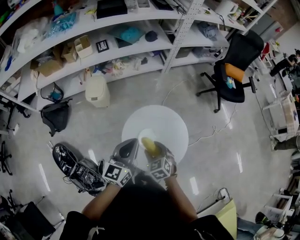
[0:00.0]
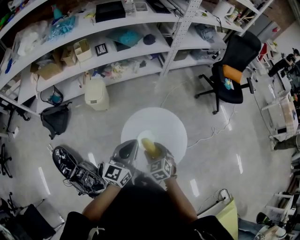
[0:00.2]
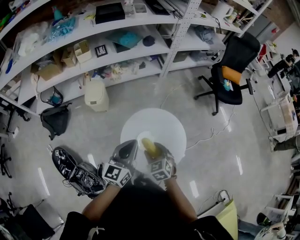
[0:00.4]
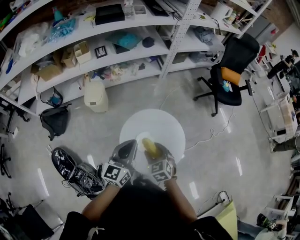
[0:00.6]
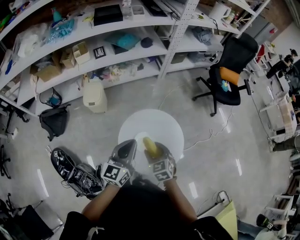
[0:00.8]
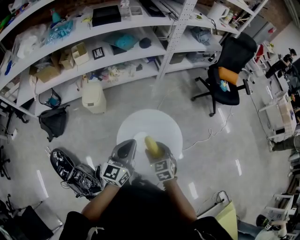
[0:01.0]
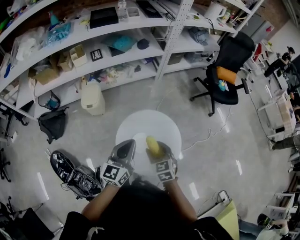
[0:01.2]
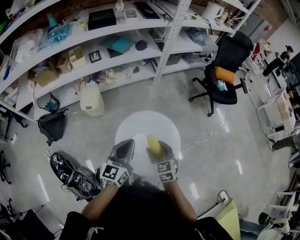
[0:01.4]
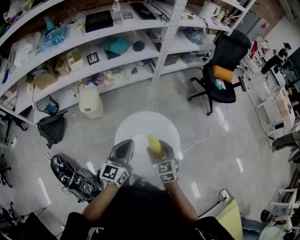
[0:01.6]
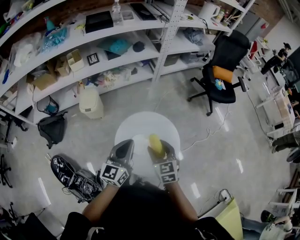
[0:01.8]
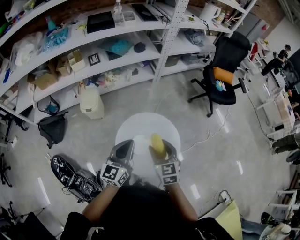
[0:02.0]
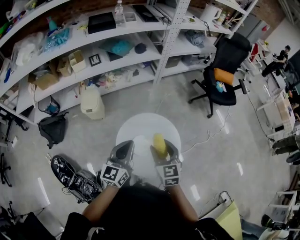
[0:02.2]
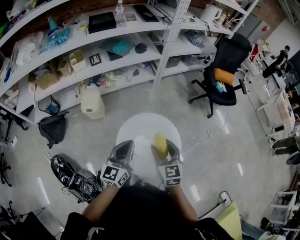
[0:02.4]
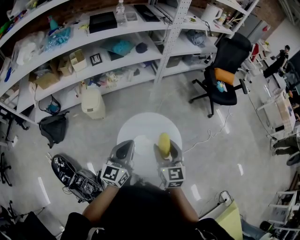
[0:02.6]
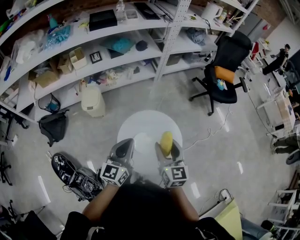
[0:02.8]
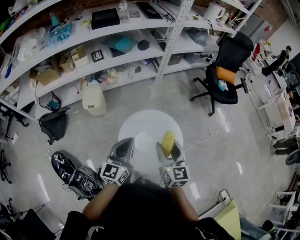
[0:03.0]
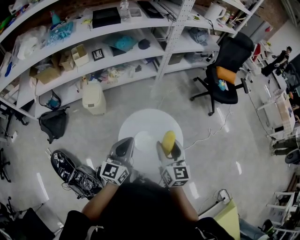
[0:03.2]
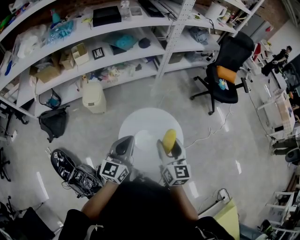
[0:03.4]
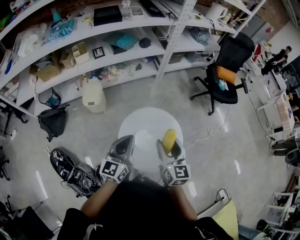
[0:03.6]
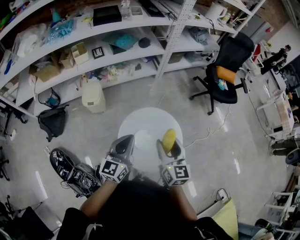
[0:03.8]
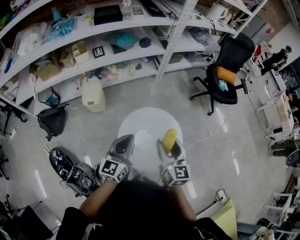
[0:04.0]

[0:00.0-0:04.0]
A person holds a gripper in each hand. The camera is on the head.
0:00.0 to 0:01.4: The right gripper is displaced upward and to the right by roughly 10 cm.
0:01.4 to 0:02.6: The right gripper shifts approximately 10 cm upward, and turns by some 20 degrees.
0:02.6 to 0:04.0: The grippers make only small movements.

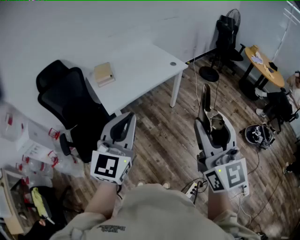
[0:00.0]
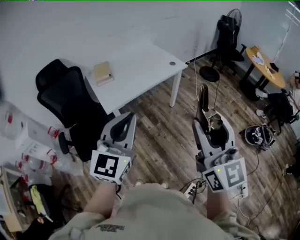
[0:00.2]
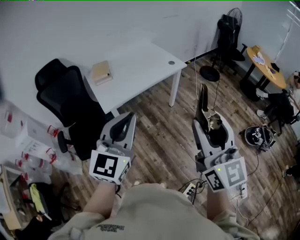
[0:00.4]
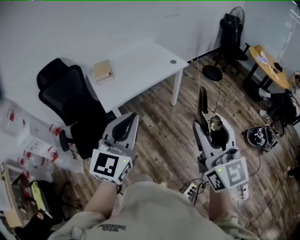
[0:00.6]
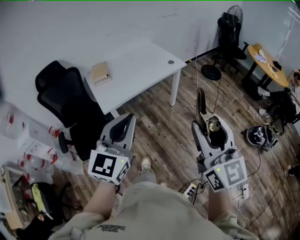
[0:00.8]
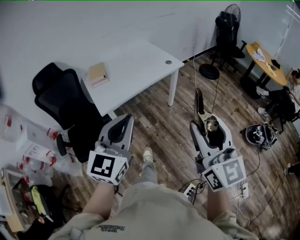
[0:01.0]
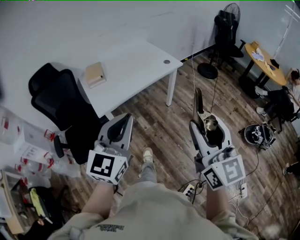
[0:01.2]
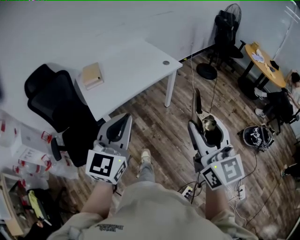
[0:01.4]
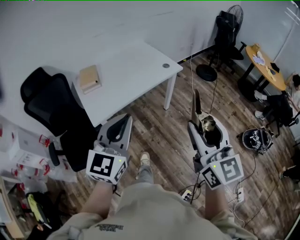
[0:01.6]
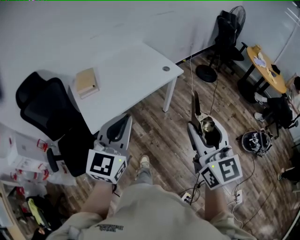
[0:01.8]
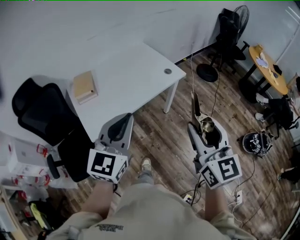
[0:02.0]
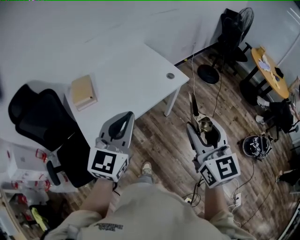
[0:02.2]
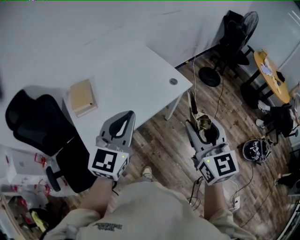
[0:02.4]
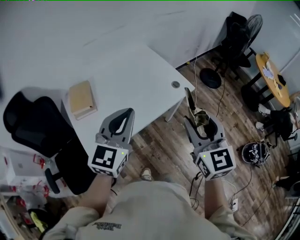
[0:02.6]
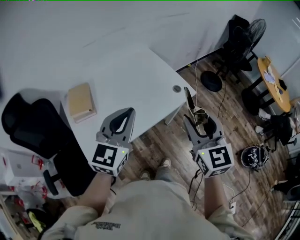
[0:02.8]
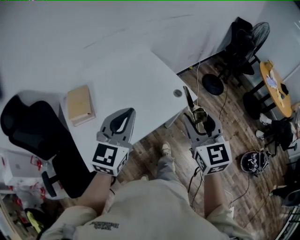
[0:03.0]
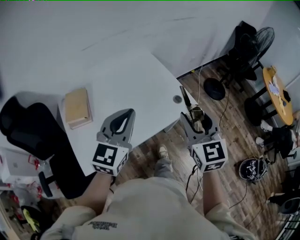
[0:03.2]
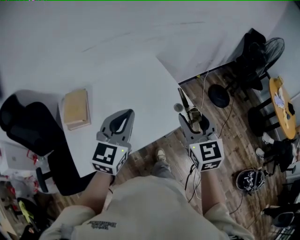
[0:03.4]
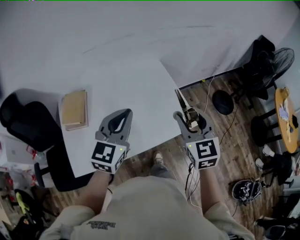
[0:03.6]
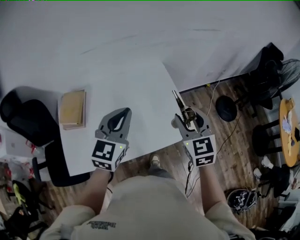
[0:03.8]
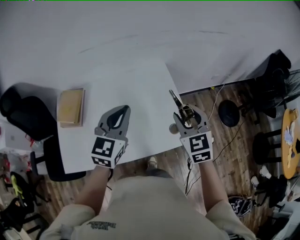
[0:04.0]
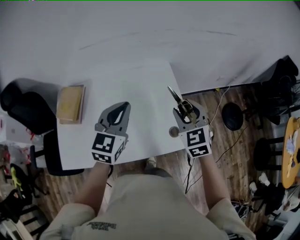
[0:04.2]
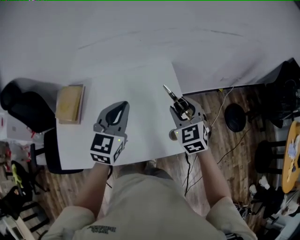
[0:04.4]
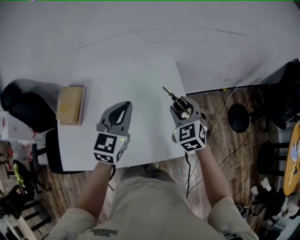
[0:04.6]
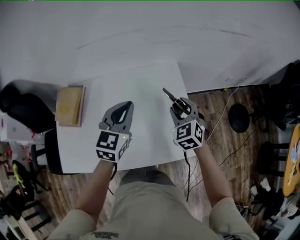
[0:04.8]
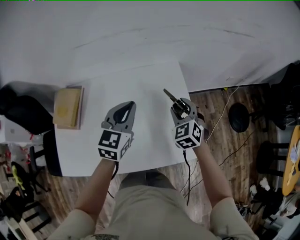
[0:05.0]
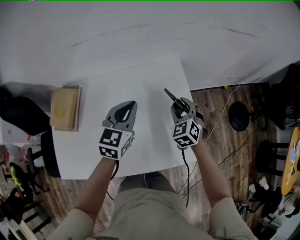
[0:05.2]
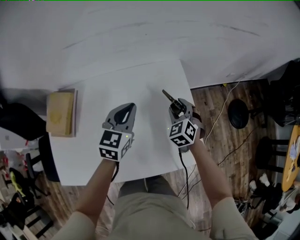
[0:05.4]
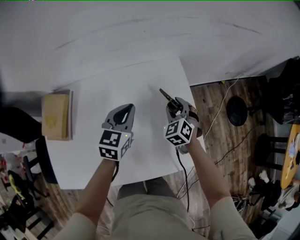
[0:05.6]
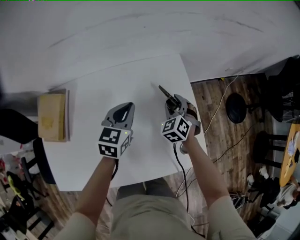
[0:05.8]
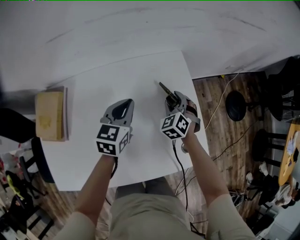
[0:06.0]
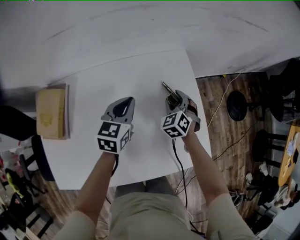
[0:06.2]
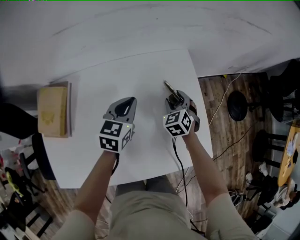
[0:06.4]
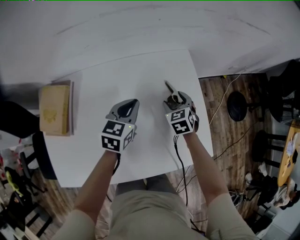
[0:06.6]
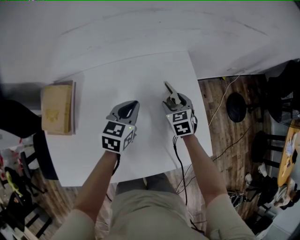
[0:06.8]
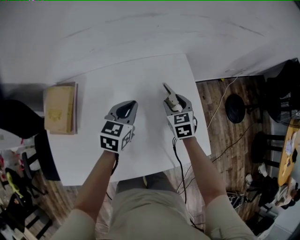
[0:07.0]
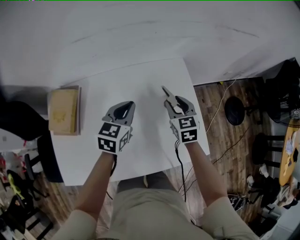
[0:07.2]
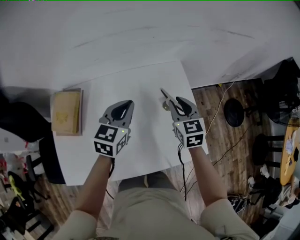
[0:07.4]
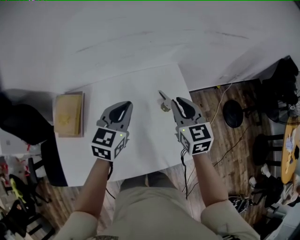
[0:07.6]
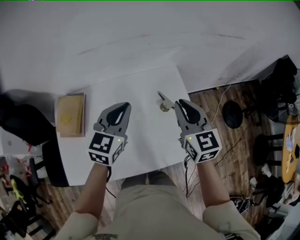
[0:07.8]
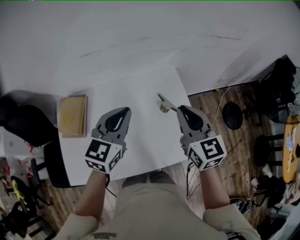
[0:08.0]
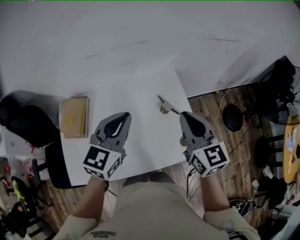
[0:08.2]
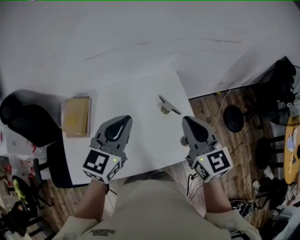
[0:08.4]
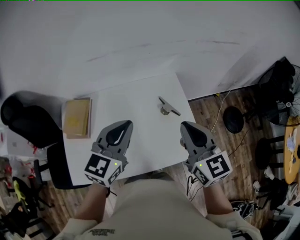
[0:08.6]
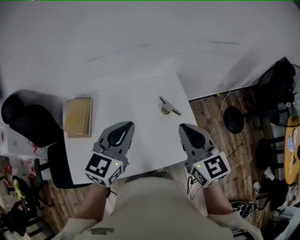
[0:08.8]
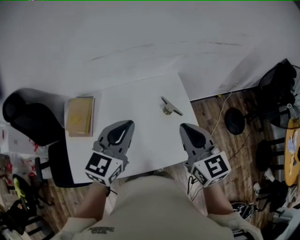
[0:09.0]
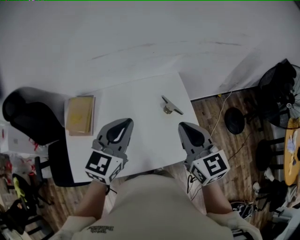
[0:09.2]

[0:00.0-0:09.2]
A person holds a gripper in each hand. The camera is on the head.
0:00.0 to 0:01.6: The two grippers go approximately 15 cm forward and to the right.
0:01.6 to 0:03.0: Both grippers travel together forward, approximately 40 cm.
0:03.0 to 0:04.6: The right gripper shifts by approximately 40 cm, and changes its angle by approximately 40 degrees; the left gripper shifts by some 30 cm, and rotates about 30 degrees.
0:04.6 to 0:06.2: Both grippers travel together downward and forward, about 25 cm. The left gripper changes its angle by some 20 degrees; the right gripper changes its angle by some 20 degrees.
0:06.2 to 0:07.6: The right gripper travels upward by approximately 25 cm, turns by about 40 degrees, and closes up. Meanwhile the left gripper heads upward and backward, covering approximately 15 cm.
0:07.6 to 0:09.2: Both grippers move backward and upward, approximately 15 cm.

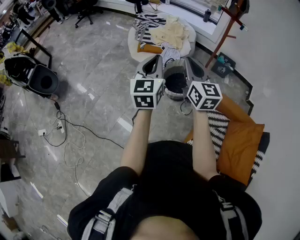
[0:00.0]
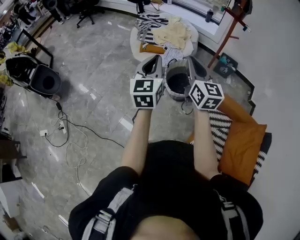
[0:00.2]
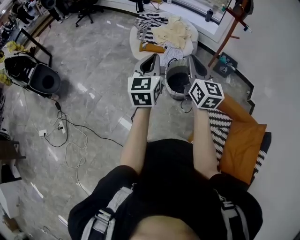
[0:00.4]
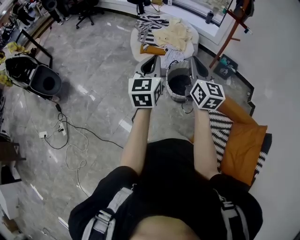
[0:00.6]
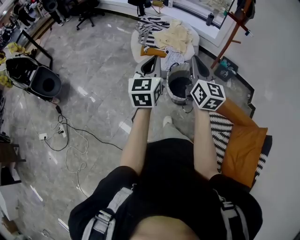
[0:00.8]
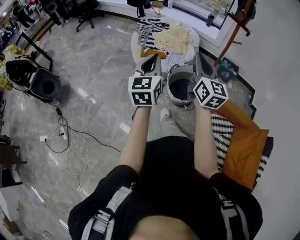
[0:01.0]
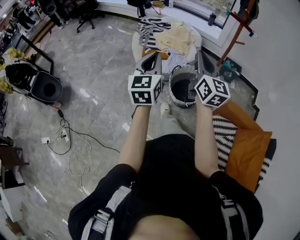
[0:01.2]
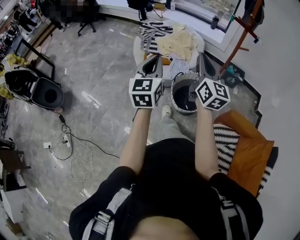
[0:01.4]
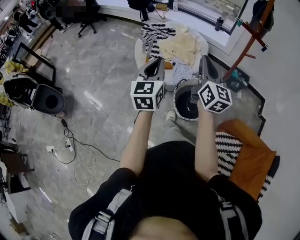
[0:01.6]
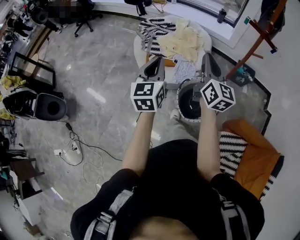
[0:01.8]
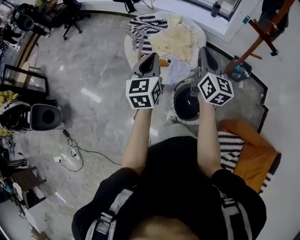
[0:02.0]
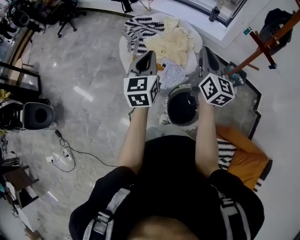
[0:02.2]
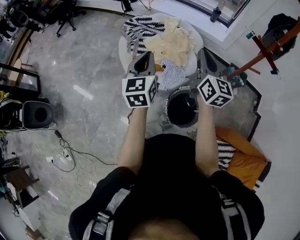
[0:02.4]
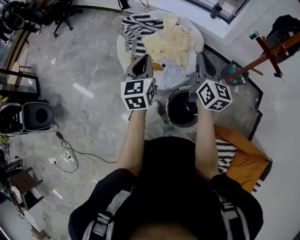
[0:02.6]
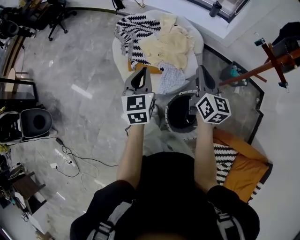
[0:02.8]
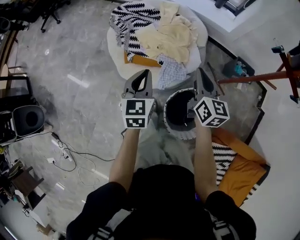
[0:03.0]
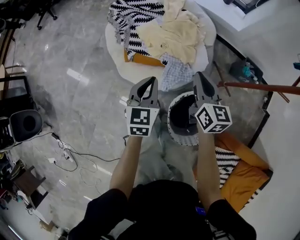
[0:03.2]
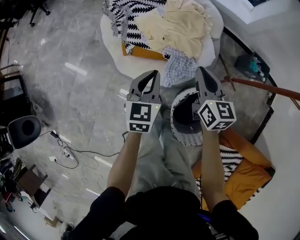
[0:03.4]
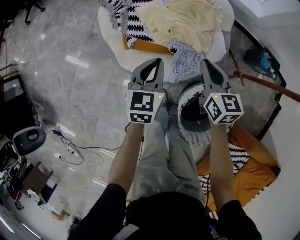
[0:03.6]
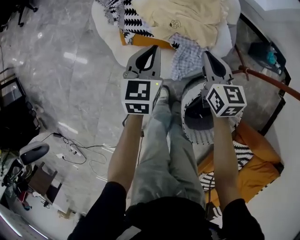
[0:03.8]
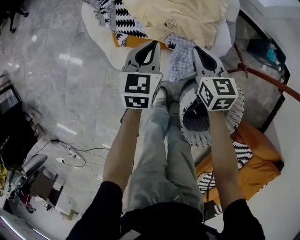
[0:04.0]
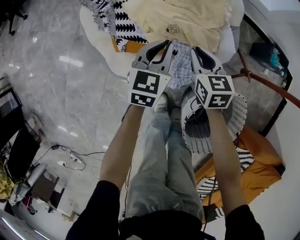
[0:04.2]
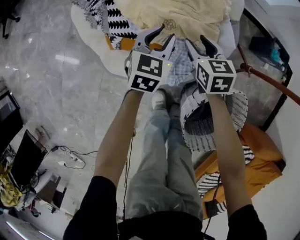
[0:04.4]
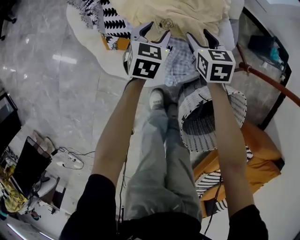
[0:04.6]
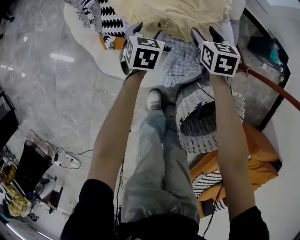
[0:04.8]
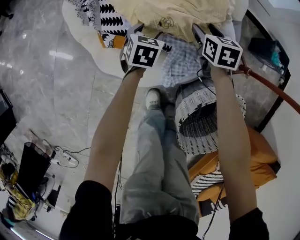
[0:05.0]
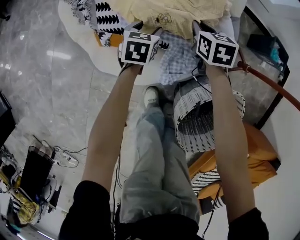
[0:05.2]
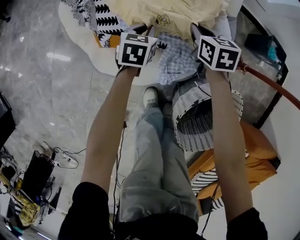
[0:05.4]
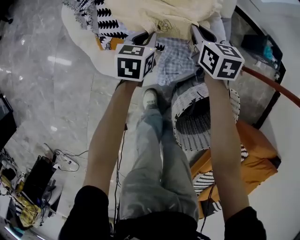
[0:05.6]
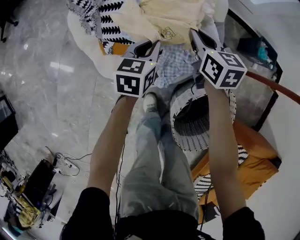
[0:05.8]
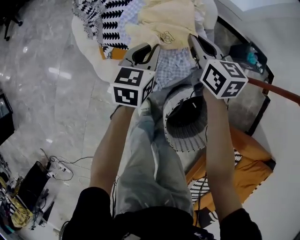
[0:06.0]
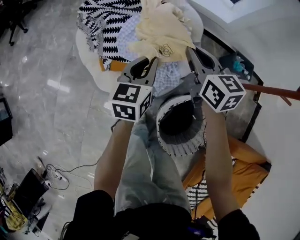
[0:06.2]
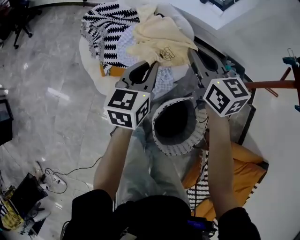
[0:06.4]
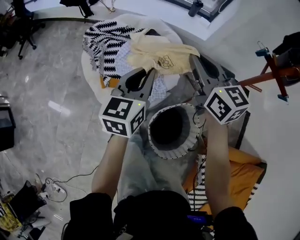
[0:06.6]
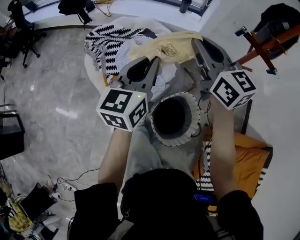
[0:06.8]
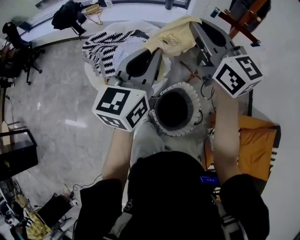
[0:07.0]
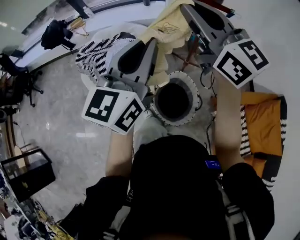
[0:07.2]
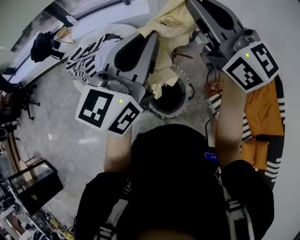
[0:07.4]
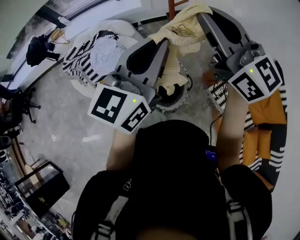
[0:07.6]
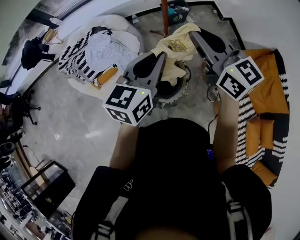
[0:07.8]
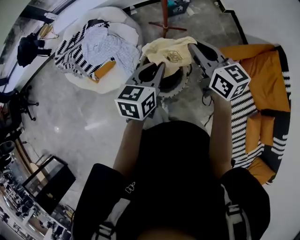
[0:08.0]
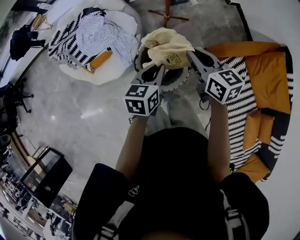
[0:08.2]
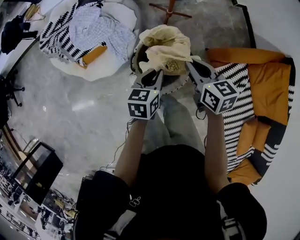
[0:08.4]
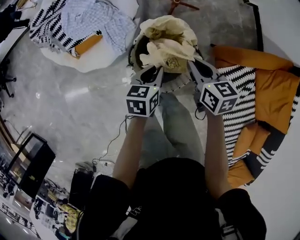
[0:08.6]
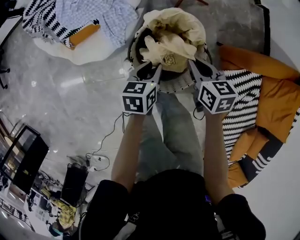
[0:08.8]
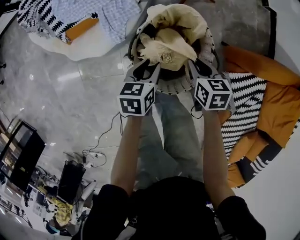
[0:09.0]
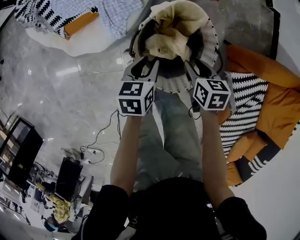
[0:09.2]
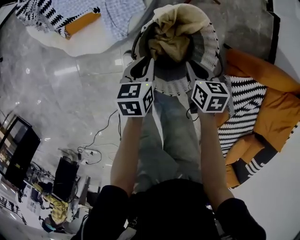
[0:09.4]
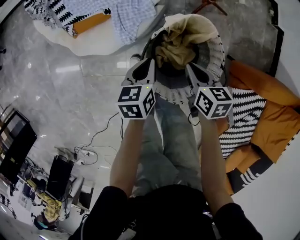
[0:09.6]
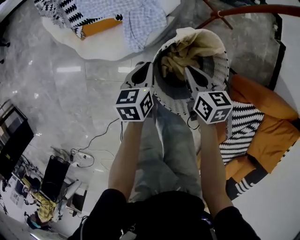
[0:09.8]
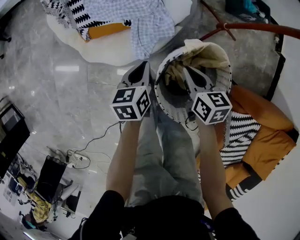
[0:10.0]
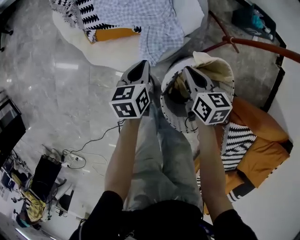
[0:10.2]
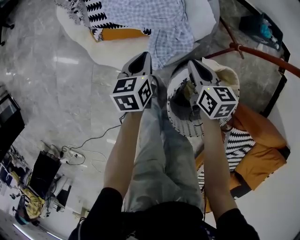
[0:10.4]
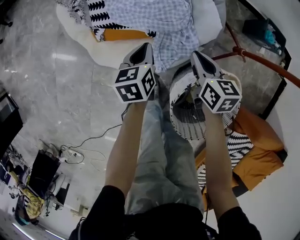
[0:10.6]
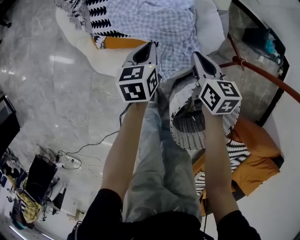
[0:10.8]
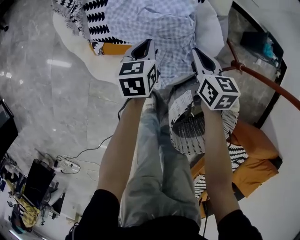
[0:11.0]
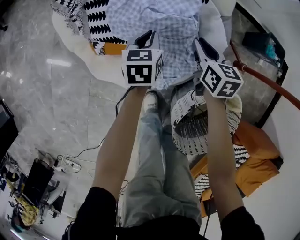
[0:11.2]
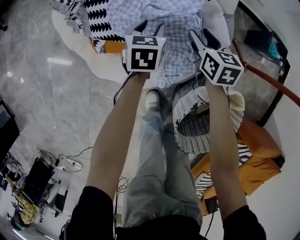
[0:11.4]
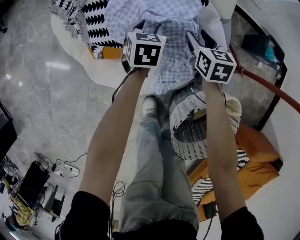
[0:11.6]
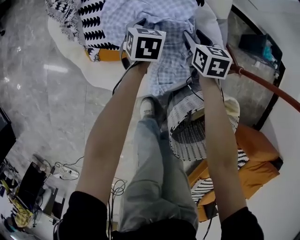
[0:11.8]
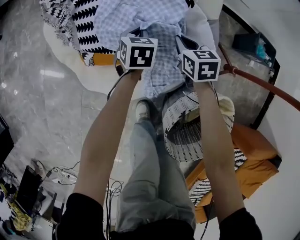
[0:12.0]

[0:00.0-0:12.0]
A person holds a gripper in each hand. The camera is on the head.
0:00.0 to 0:01.6: Both grippers travel together forward, approximately 25 cm.
0:01.6 to 0:03.0: The two grippers go some 40 cm forward and downward. The left gripper rotates about 20 degrees, while the right gripper swivels some 20 degrees.
0:03.0 to 0:04.4: The two grippers go approximately 50 cm downward and forward. The left gripper swivels approximately 30 degrees, and opens up, while the right gripper changes its angle by about 30 degrees, and opens.
0:04.4 to 0:06.0: Both grippers travel together upward, about 15 cm. The right gripper closes. The left gripper opens and closes again.
0:06.0 to 0:07.6: The two grippers travel together, some 50 cm. Both grippers travel together upward, roughly 60 cm. The right gripper tips its fingers upward by about 40 degrees. Meanwhile the left gripper tips its fingers upward by about 30 degrees.
0:07.6 to 0:09.0: Both grippers travel together downward, roughly 70 cm. The right gripper points its fingers approximately 60 degrees further downward, while the left gripper tilts its fingers about 50 degrees downward.
0:09.0 to 0:10.4: The left gripper moves approximately 30 cm, swivels some 30 degrees, and closes up; the right gripper shifts by approximately 30 cm, rotates some 20 degrees, and opens, then closes once more.
0:10.4 to 0:12.0: The grippers both shift forward and downward by about 25 cm. The right gripper opens, then closes again; the left gripper rotates roughly 20 degrees, and opens, then closes again.
